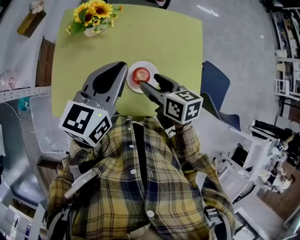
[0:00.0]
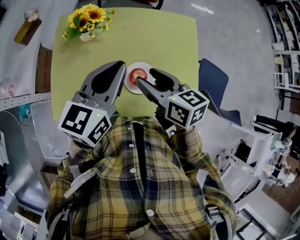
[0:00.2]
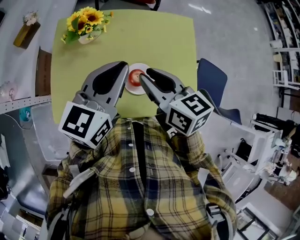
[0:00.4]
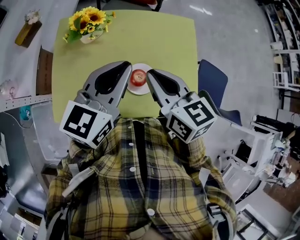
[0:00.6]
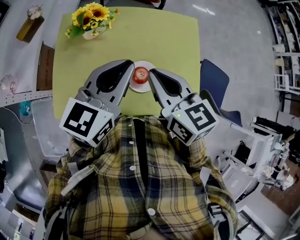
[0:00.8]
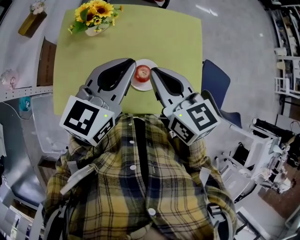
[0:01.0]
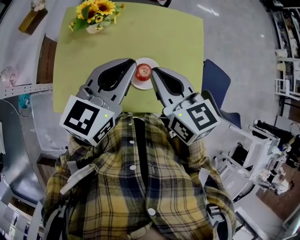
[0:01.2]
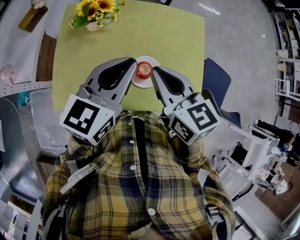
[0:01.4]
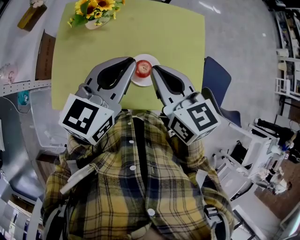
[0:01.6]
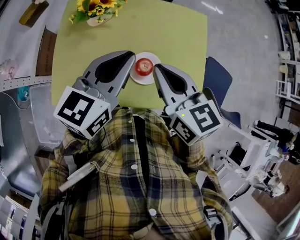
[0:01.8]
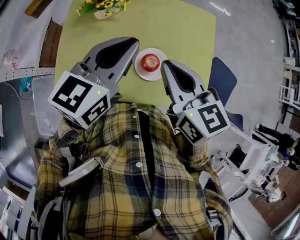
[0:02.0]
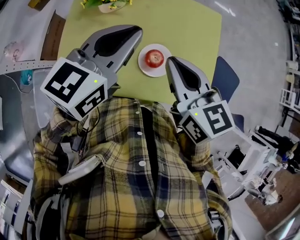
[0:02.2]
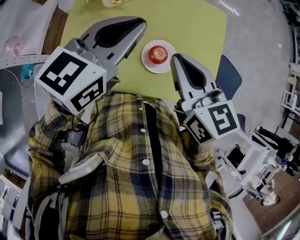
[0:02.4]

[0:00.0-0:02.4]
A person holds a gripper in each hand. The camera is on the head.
0:00.0 to 0:01.2: The right gripper goes some 15 cm upward, swivels roughly 20 degrees, and closes its fingers.
0:01.2 to 0:02.4: The grippers move only a little.

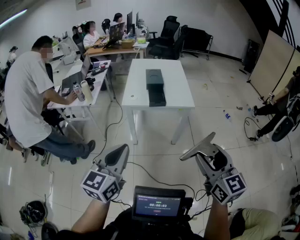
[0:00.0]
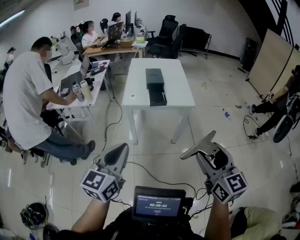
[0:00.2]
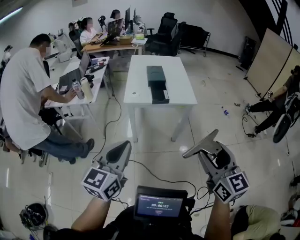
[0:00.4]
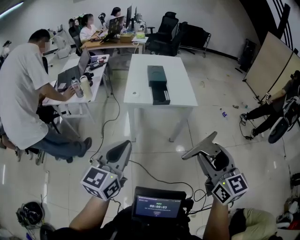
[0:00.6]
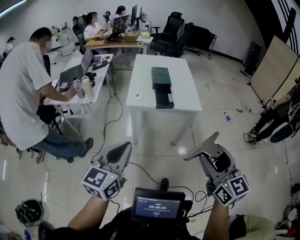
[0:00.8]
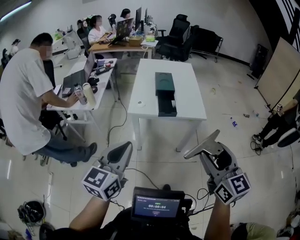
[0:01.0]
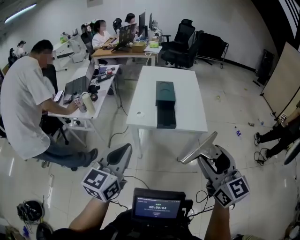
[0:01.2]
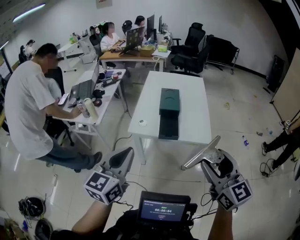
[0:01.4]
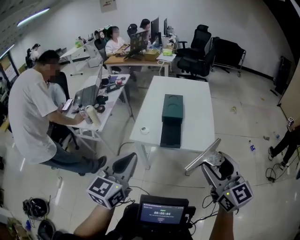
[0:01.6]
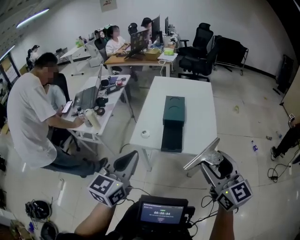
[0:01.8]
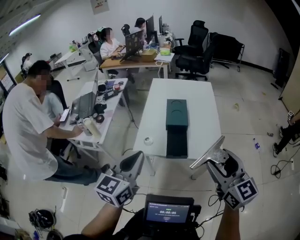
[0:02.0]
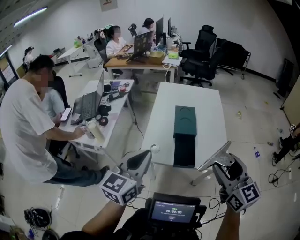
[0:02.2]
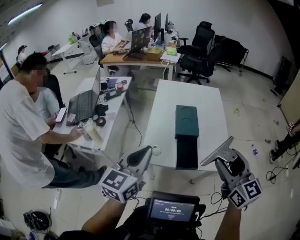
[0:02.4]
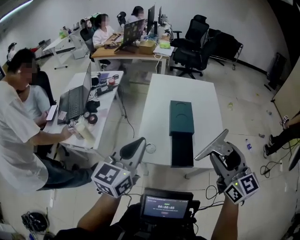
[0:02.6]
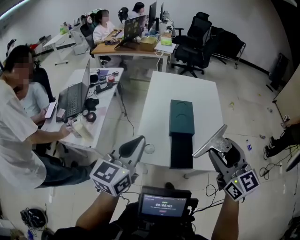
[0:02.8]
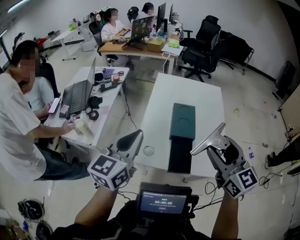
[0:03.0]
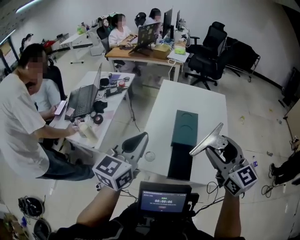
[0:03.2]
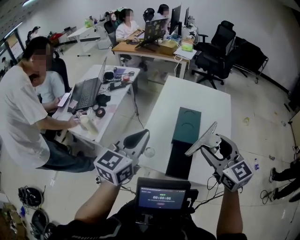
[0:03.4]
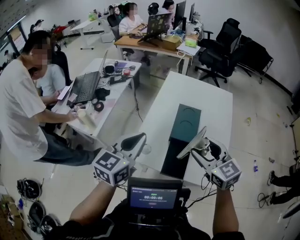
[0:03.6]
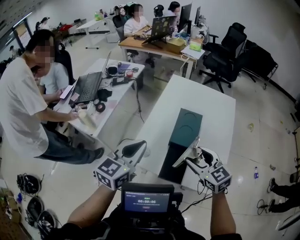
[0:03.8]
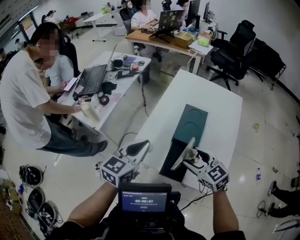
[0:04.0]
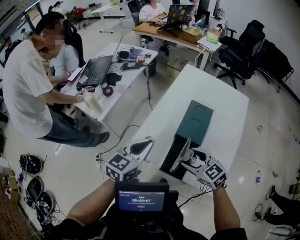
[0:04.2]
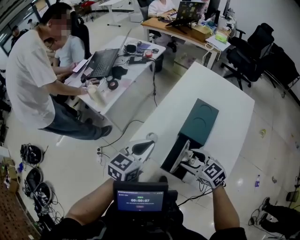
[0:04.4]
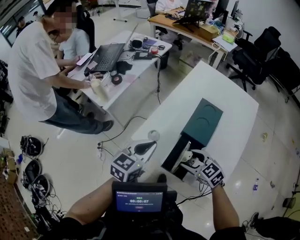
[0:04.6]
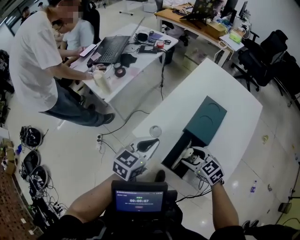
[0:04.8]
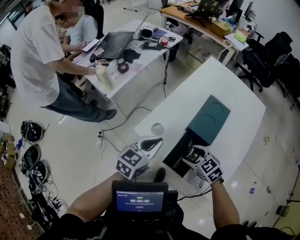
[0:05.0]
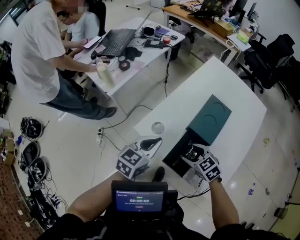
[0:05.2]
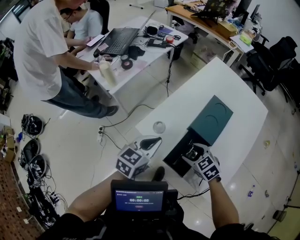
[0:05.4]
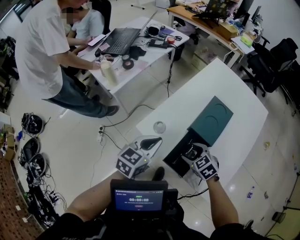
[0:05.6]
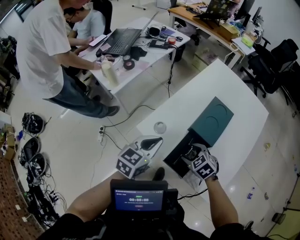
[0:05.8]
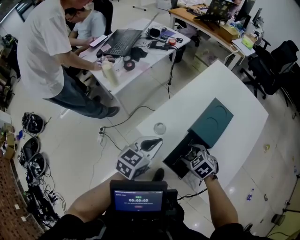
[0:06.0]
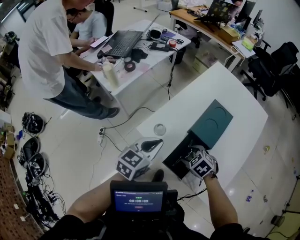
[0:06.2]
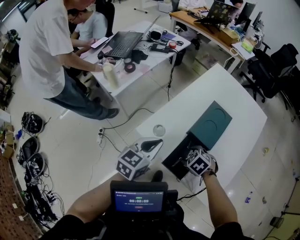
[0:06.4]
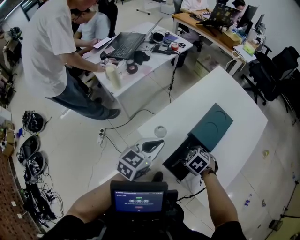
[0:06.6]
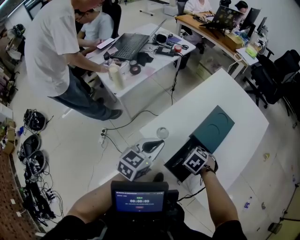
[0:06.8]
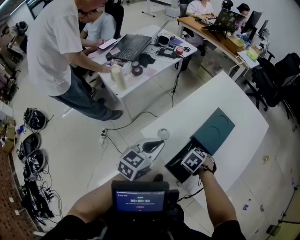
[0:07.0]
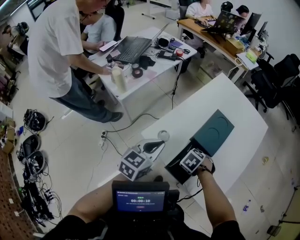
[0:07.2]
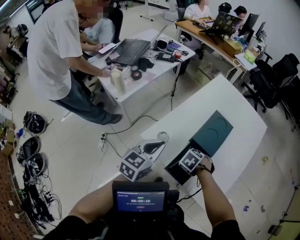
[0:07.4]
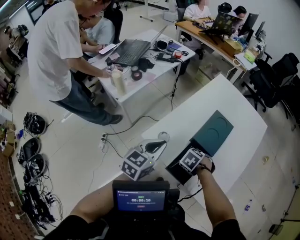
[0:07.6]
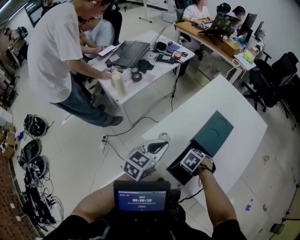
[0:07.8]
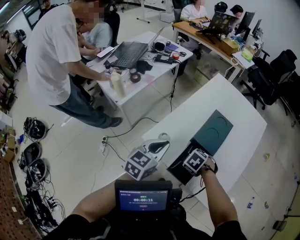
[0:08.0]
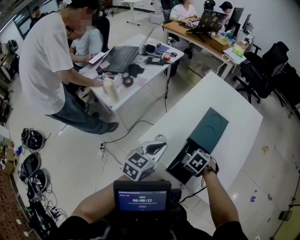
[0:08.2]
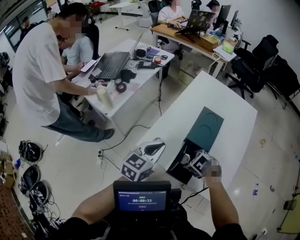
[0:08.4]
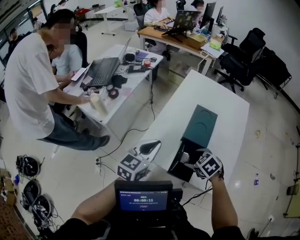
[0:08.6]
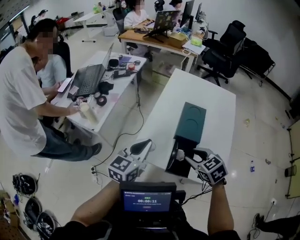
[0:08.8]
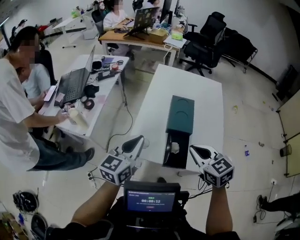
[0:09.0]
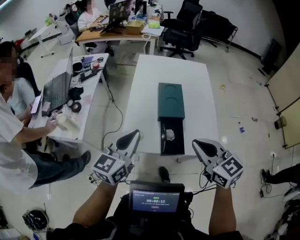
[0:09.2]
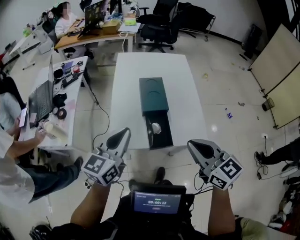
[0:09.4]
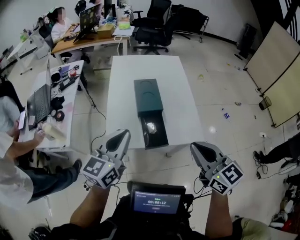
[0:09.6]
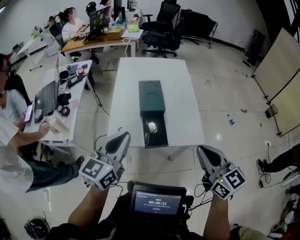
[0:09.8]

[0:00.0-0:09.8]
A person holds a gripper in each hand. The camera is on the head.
0:00.0 to 0:01.4: Both grippers move forward, some 35 cm.
0:01.4 to 0:02.8: Both grippers move forward, roughly 40 cm.
0:02.8 to 0:04.2: The left gripper travels downward by some 15 cm, and swivels about 20 degrees. The right gripper shifts about 25 cm downward, and swivels about 50 degrees.
0:04.2 to 0:05.6: Both grippers move downward, roughly 10 cm. The right gripper turns by approximately 30 degrees.
0:05.6 to 0:07.0: The right gripper tips its fingers downward by some 30 degrees.
0:07.0 to 0:08.4: The grippers stay close to where they were, moving slightly.
0:08.4 to 0:09.8: The left gripper is displaced upward by some 15 cm, and rotates approximately 30 degrees. Meanwhile the right gripper travels upward by about 35 cm, tilts its fingers some 60 degrees upward, and closes up.

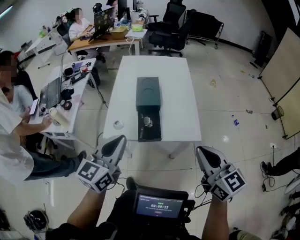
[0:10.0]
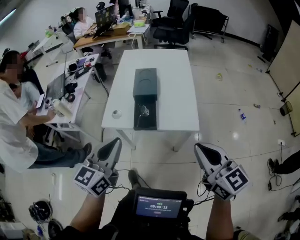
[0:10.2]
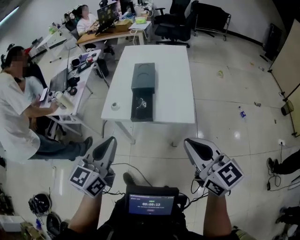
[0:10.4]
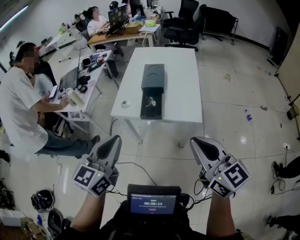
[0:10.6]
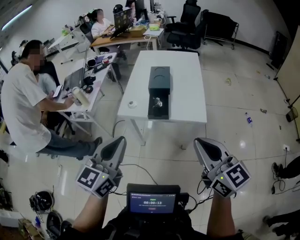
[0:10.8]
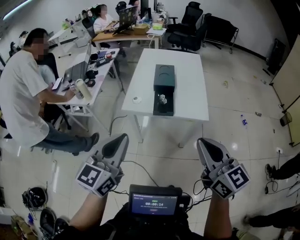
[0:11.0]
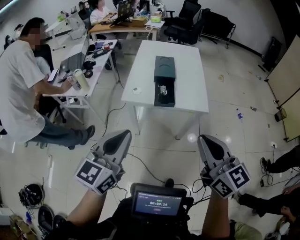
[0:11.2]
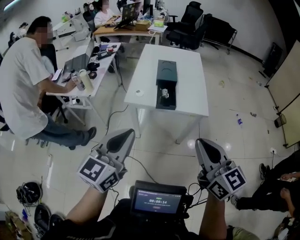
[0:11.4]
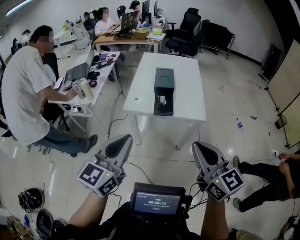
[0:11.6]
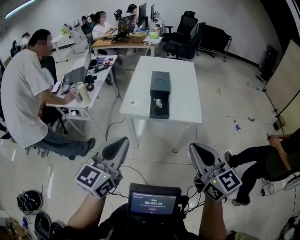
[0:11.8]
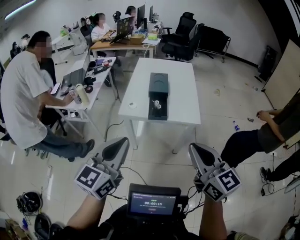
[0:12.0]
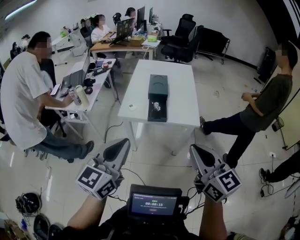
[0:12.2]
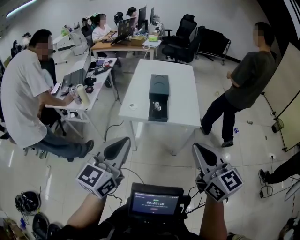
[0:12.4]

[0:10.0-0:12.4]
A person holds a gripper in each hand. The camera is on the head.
0:10.0 to 0:11.2: The right gripper heads backward and to the left, covering roughly 25 cm; the left gripper goes some 30 cm backward.
0:11.2 to 0:12.4: The right gripper changes place by some 5 cm, while the left gripper ends up approximately 5 cm from where it was.

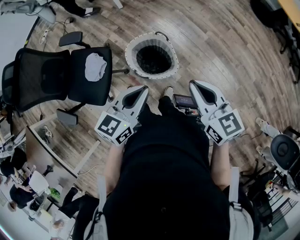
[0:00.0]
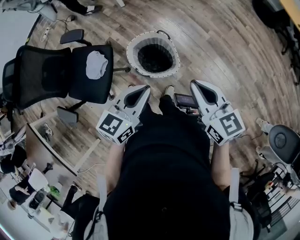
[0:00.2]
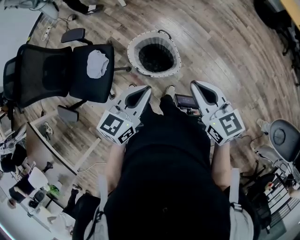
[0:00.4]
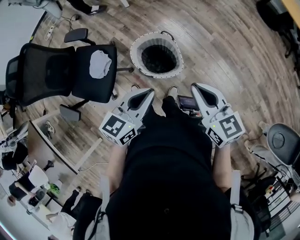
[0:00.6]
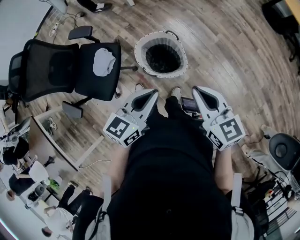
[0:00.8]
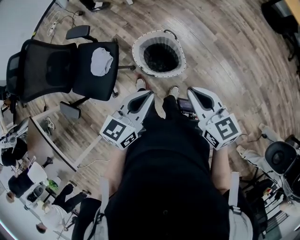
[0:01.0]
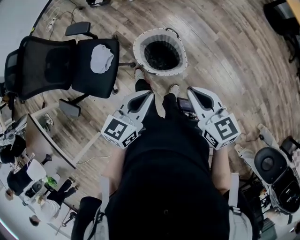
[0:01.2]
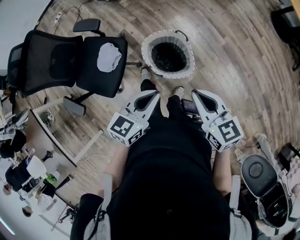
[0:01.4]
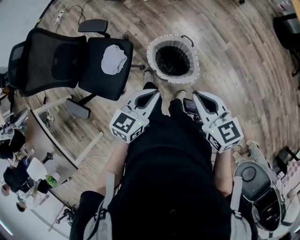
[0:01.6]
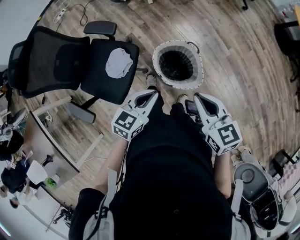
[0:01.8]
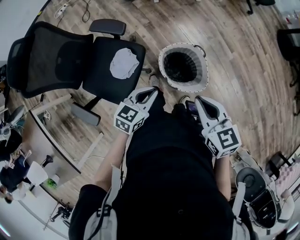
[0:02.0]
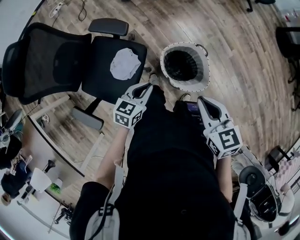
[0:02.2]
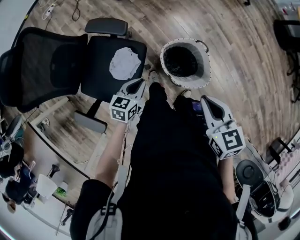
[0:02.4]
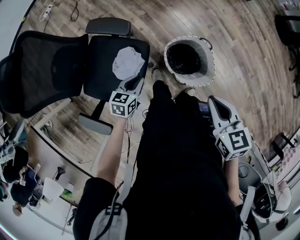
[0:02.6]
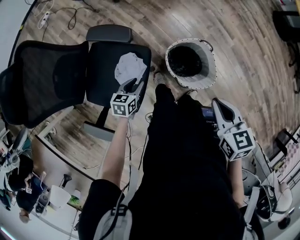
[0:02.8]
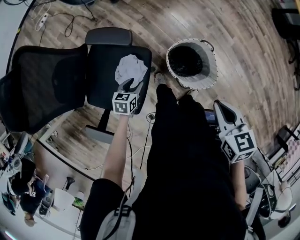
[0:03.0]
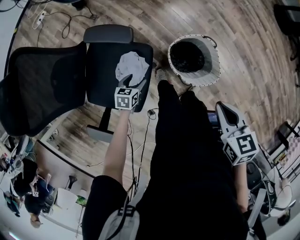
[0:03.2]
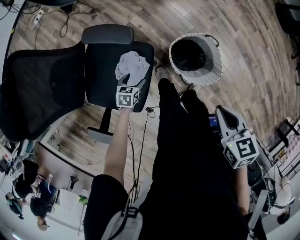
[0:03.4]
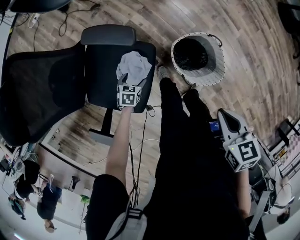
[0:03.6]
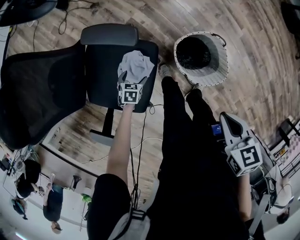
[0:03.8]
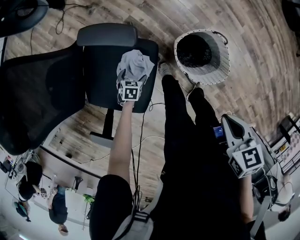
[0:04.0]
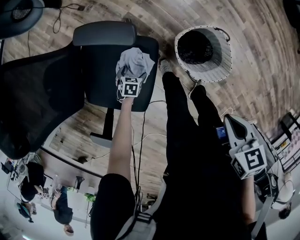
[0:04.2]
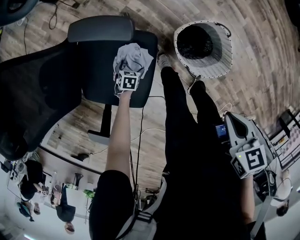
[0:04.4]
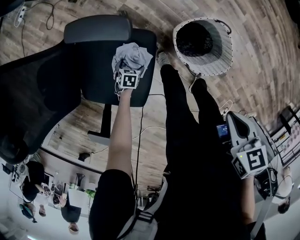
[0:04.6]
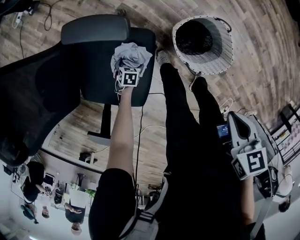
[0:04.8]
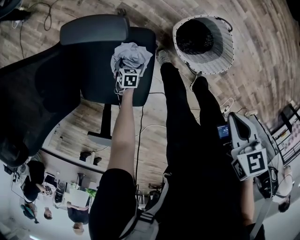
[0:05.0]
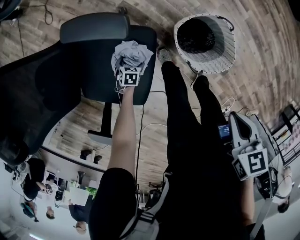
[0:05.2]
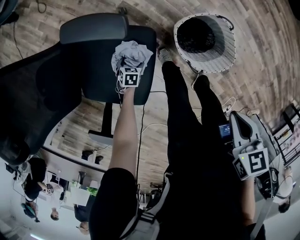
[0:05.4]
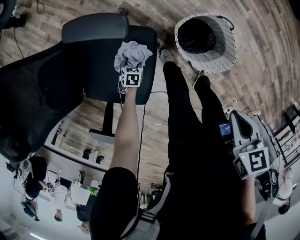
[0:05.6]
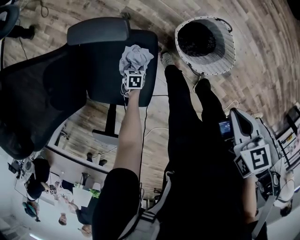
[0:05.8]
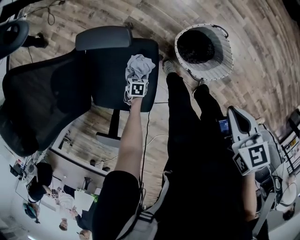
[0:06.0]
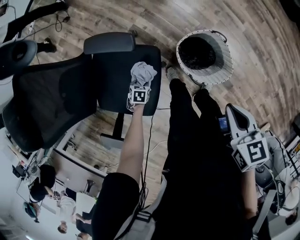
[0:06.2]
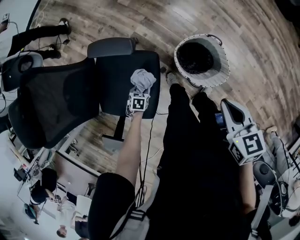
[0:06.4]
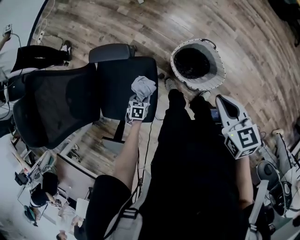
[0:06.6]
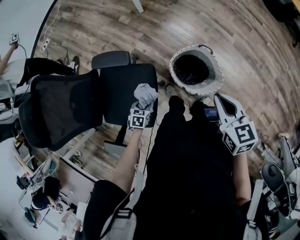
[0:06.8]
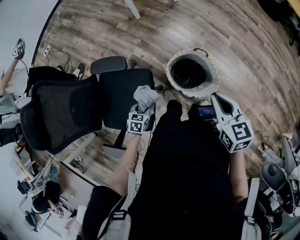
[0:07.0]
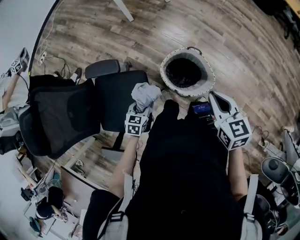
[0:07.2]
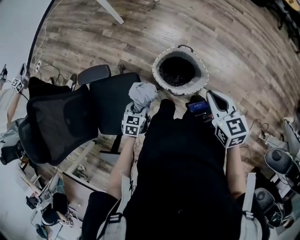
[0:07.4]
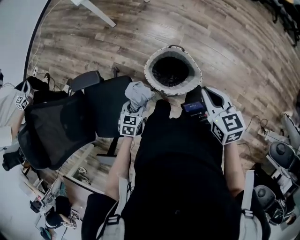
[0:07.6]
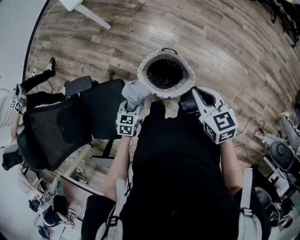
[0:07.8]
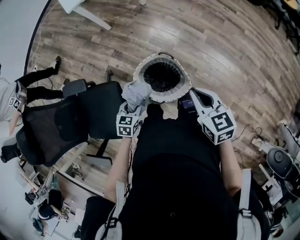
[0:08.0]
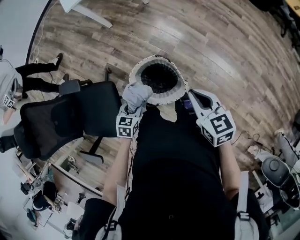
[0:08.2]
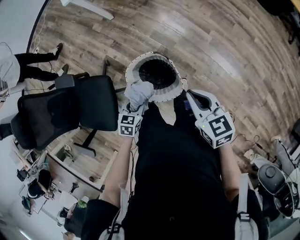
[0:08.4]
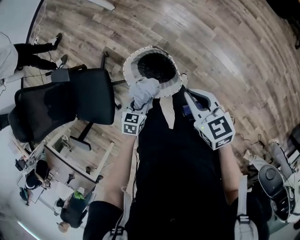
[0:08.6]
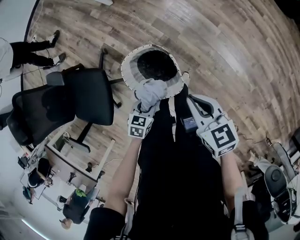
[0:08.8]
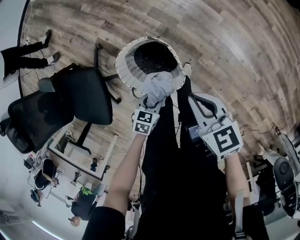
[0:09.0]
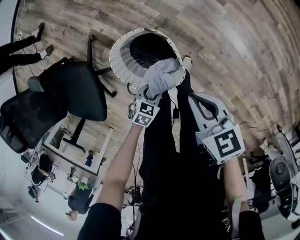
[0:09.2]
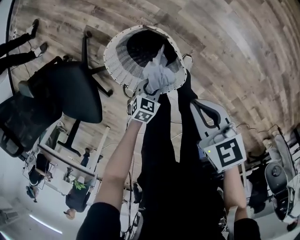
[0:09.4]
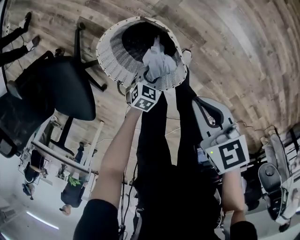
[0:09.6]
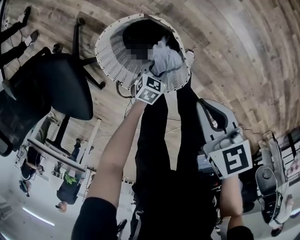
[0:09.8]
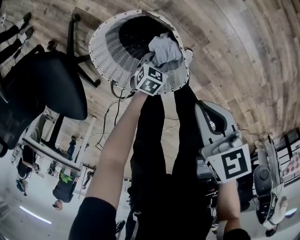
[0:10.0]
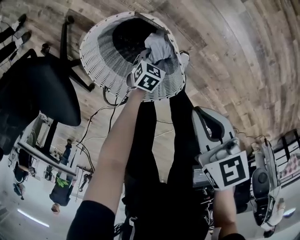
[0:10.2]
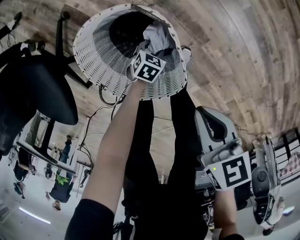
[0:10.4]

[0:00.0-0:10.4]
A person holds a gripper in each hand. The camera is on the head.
0:00.0 to 0:01.4: The right gripper goes roughly 5 cm to the left. The left gripper moves about 5 cm.
0:01.4 to 0:03.0: The right gripper heads to the left and forward, covering roughly 25 cm, and swivels roughly 30 degrees. Meanwhile the left gripper is displaced to the left, downward and forward by roughly 50 cm, and swivels approximately 30 degrees.
0:03.0 to 0:04.4: The right gripper is displaced downward by roughly 5 cm; the left gripper shifts roughly 20 cm downward, rotates approximately 30 degrees, and opens up.
0:04.4 to 0:06.0: The left gripper closes.
0:06.0 to 0:07.4: The left gripper moves upward and to the right, about 30 cm, and turns by roughly 30 degrees, while the right gripper shifts roughly 10 cm to the right, and swivels approximately 20 degrees.
0:07.4 to 0:09.0: The left gripper shifts approximately 35 cm to the right. The right gripper shifts about 30 cm to the right, forward and downward, and swivels roughly 30 degrees.
0:09.0 to 0:10.4: The left gripper shifts some 35 cm downward; the right gripper shifts about 25 cm downward.
